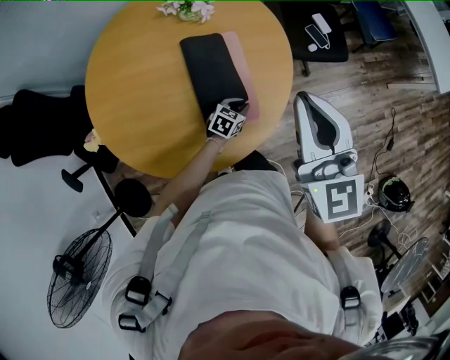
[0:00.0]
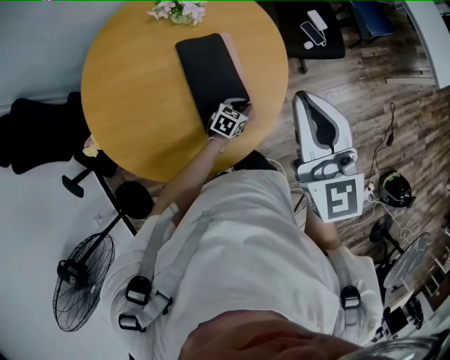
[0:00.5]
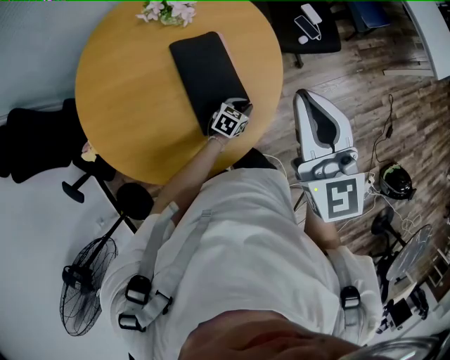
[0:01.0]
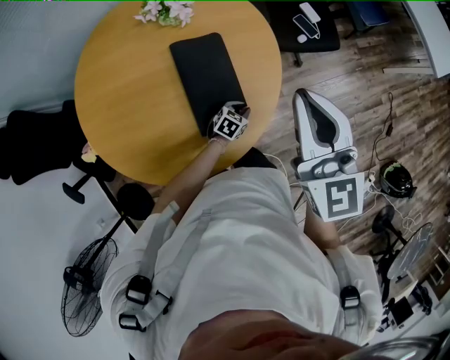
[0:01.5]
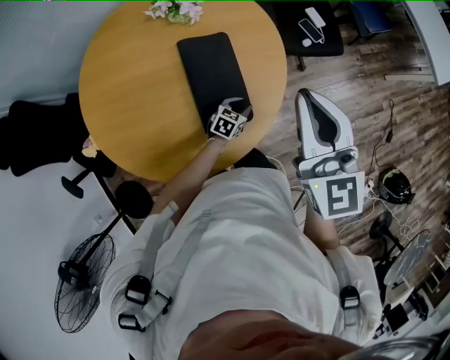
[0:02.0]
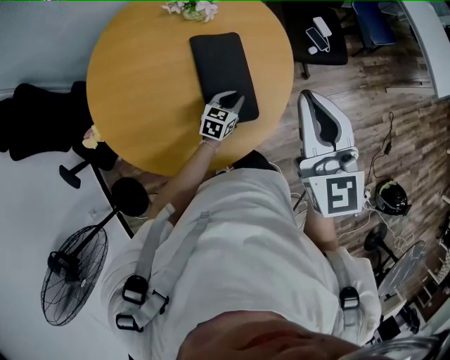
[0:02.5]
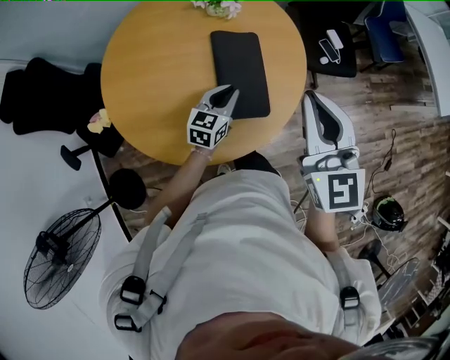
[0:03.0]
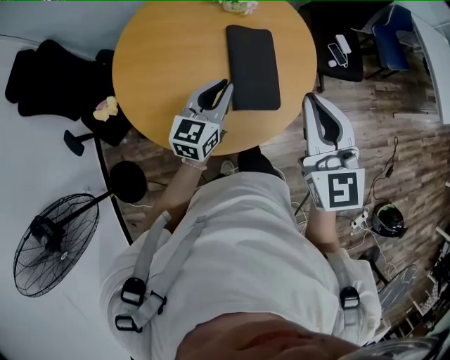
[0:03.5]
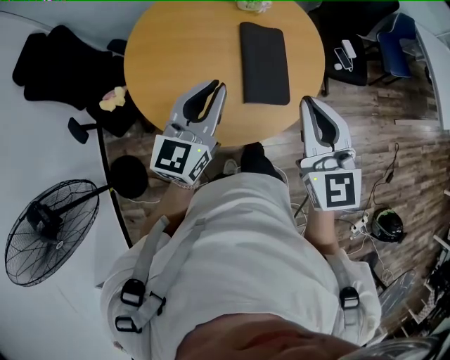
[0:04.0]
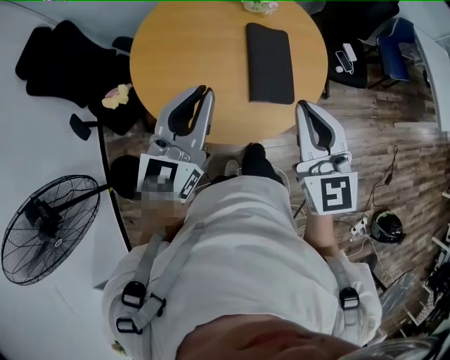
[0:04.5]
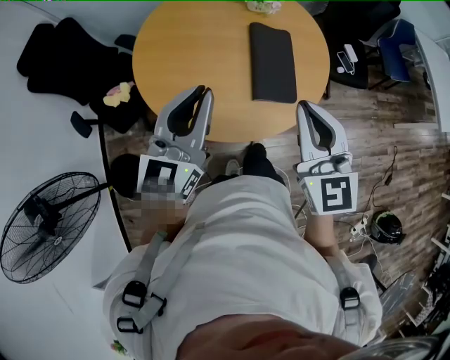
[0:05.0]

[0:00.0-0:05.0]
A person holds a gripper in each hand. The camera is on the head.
0:00.0 to 0:02.5: The left gripper goes approximately 5 cm upward.
0:02.5 to 0:05.0: The left gripper is displaced upward, to the left and backward by roughly 50 cm, and points its fingers some 40 degrees further upward. The right gripper shifts some 25 cm backward and to the left.

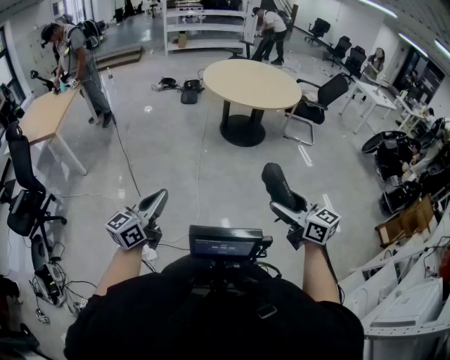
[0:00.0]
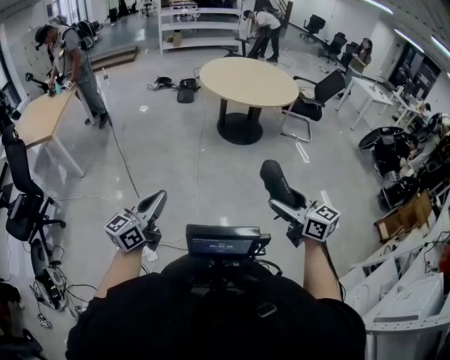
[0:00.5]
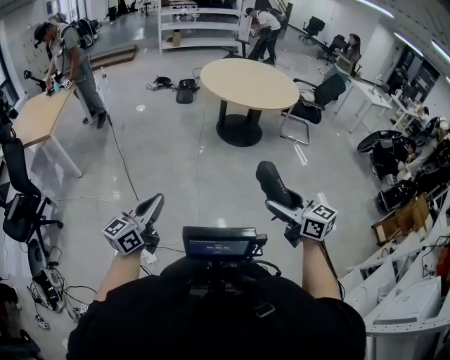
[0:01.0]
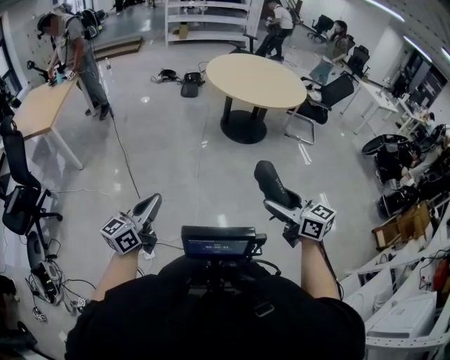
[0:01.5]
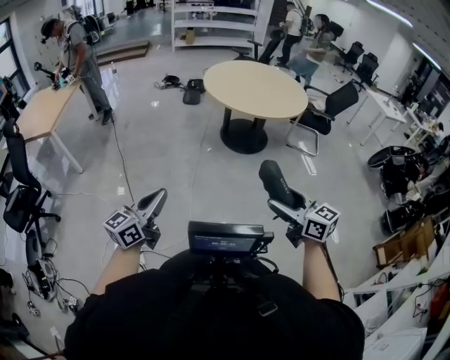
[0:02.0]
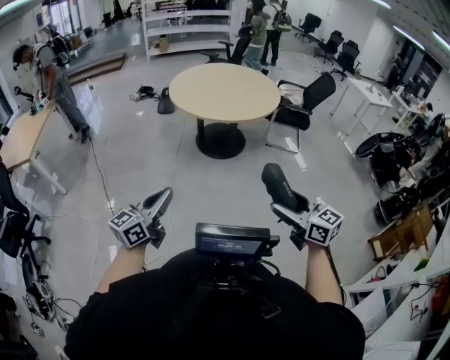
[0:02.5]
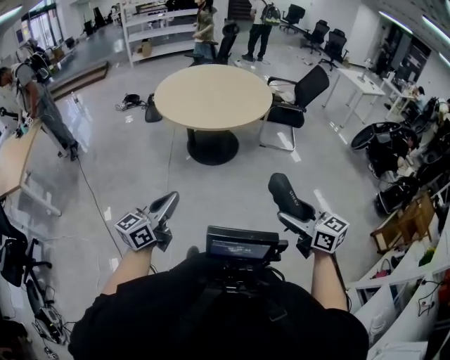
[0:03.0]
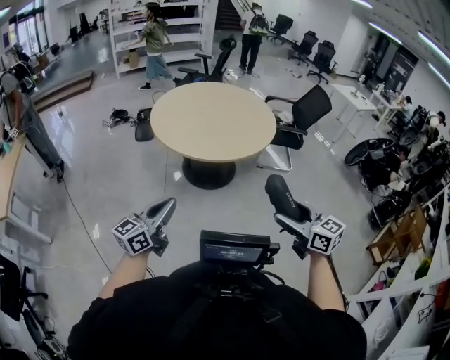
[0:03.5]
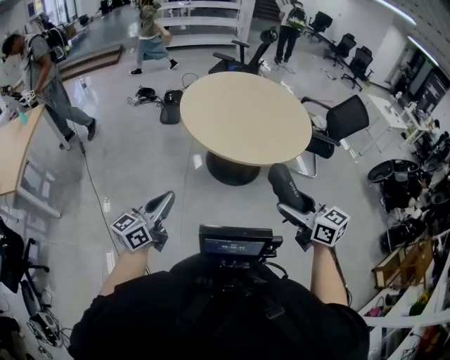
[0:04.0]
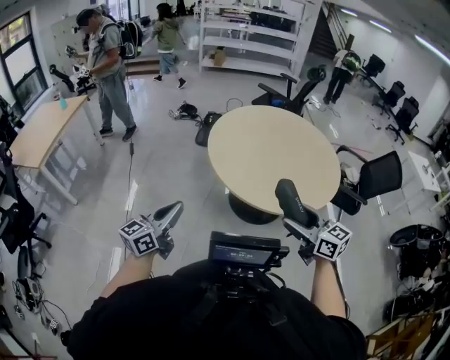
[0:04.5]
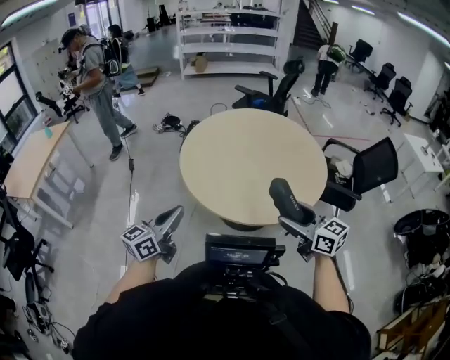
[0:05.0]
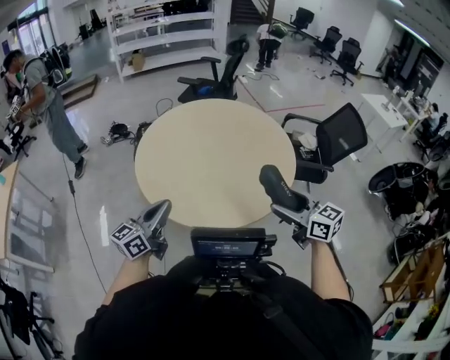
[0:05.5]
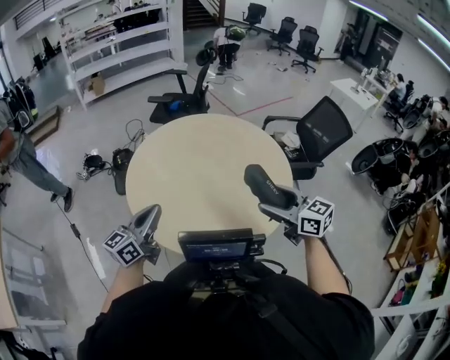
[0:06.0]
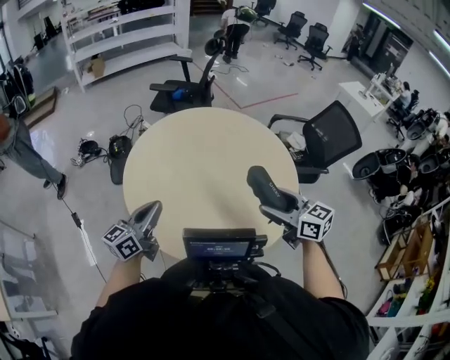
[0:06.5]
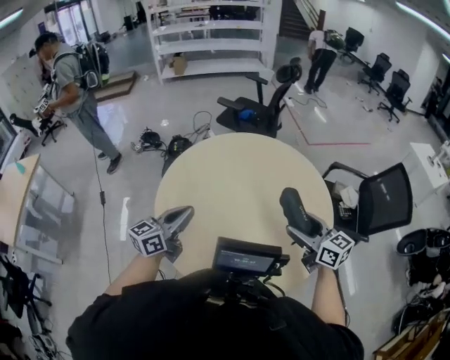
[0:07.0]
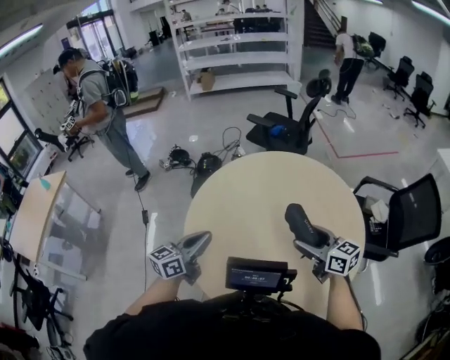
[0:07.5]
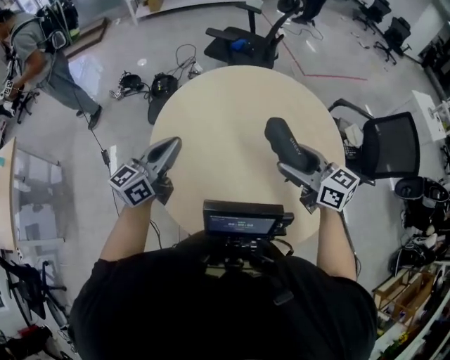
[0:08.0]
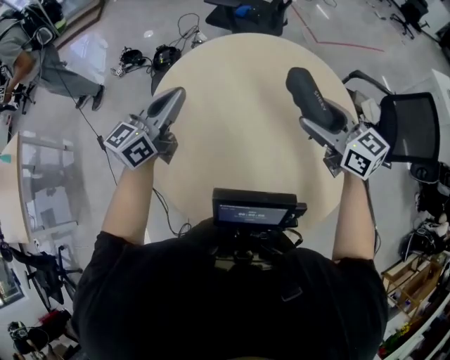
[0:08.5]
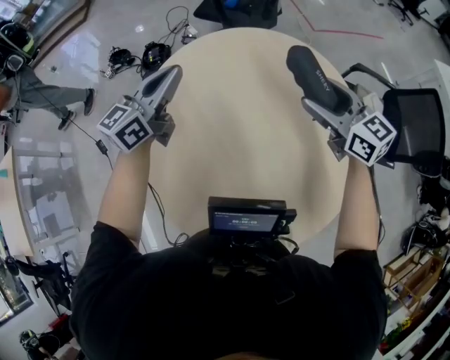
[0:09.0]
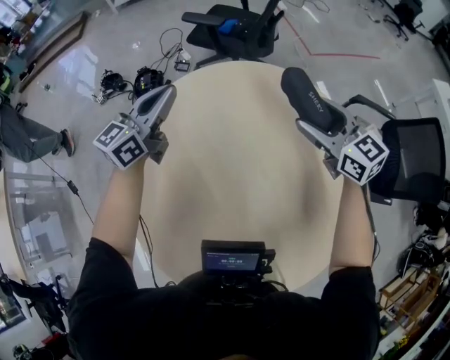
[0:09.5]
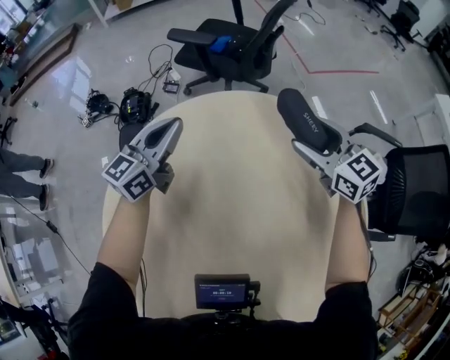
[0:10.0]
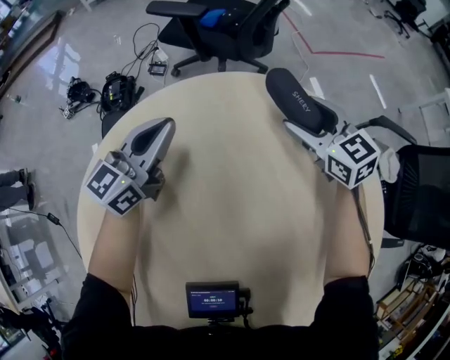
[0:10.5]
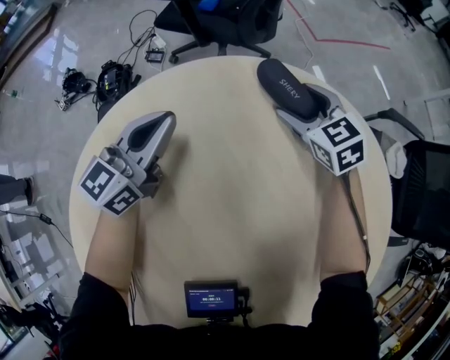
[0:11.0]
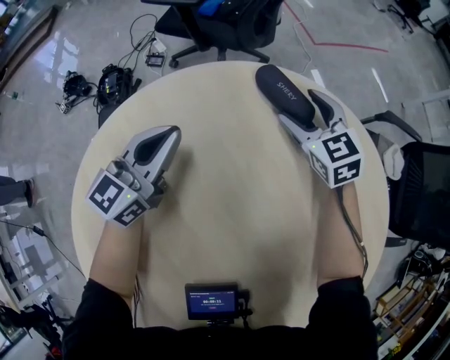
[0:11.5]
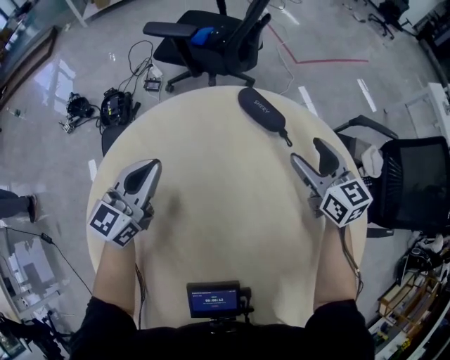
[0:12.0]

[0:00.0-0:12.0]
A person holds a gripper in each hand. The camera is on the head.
0:00.0 to 0:02.0: The two grippers go about 15 cm forward and to the right.
0:02.0 to 0:04.0: The two grippers travel together, forward, approximately 50 cm.
0:04.0 to 0:06.0: The pair of grippers is taken forward, some 50 cm.
0:06.0 to 0:08.0: The two grippers go roughly 25 cm forward.
0:08.0 to 0:10.0: The two grippers travel together, forward, about 40 cm.
0:10.0 to 0:12.0: Both grippers travel together downward, approximately 5 cm.

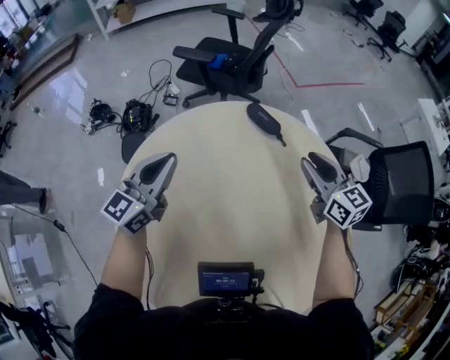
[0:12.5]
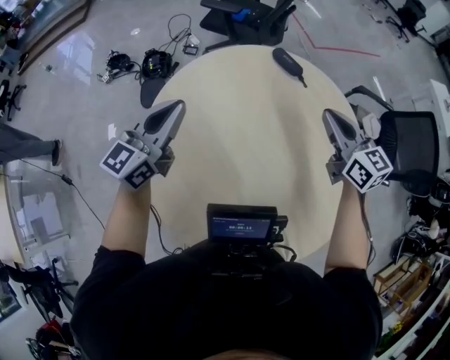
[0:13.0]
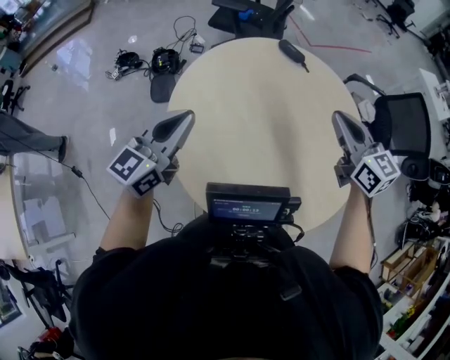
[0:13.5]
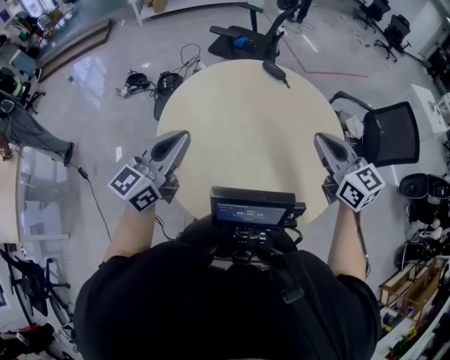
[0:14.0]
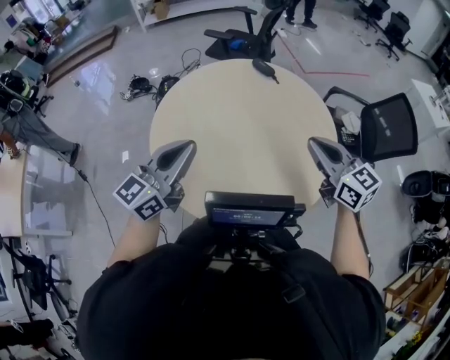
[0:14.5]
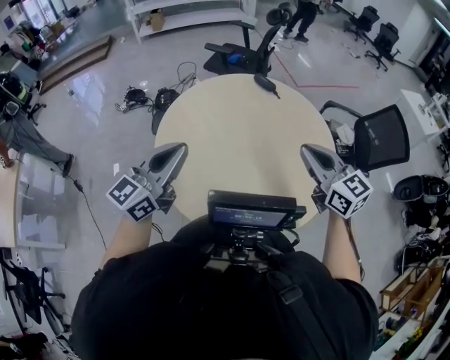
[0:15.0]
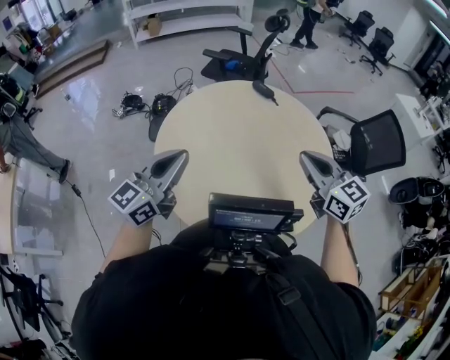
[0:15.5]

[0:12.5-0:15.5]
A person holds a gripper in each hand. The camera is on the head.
0:12.5 to 0:14.0: The right gripper is displaced backward and upward by about 40 cm, and closes its fingers. The left gripper is displaced backward by approximately 40 cm.
0:14.0 to 0:15.5: The left gripper reaches some 10 cm to the right, then returns, while the right gripper goes to the right and returns, some 5 cm each way.

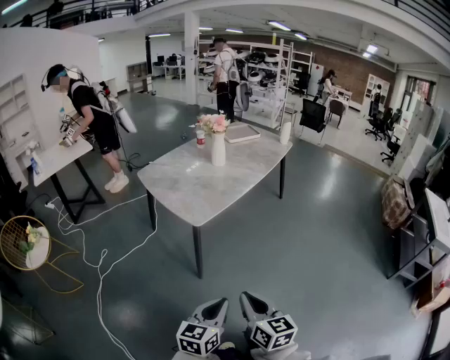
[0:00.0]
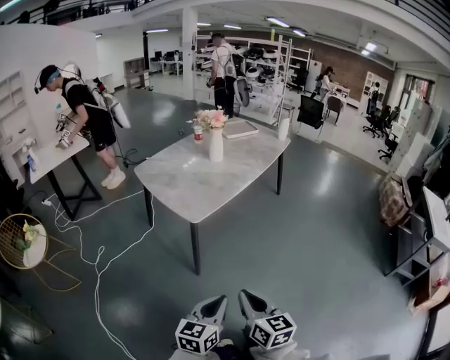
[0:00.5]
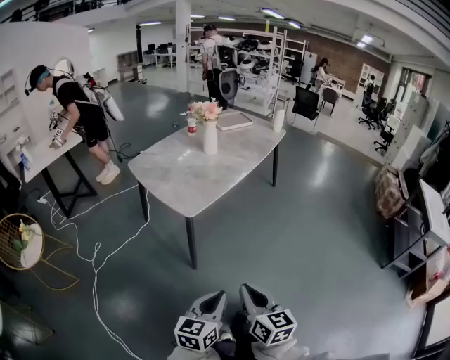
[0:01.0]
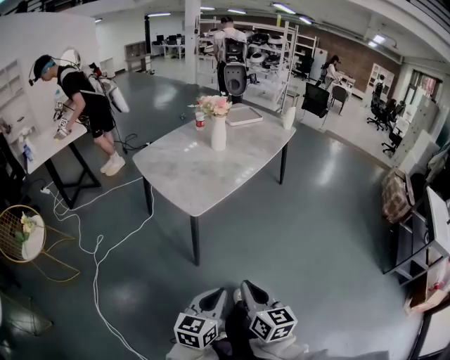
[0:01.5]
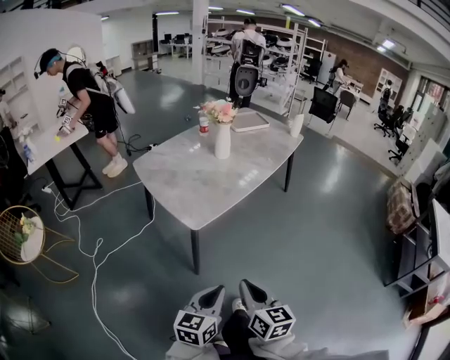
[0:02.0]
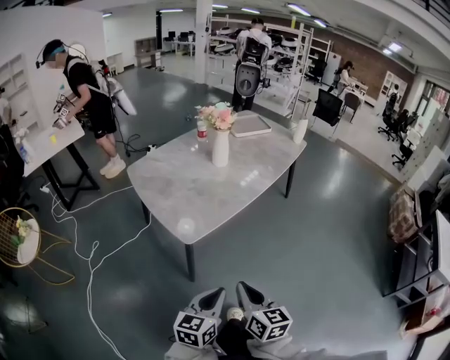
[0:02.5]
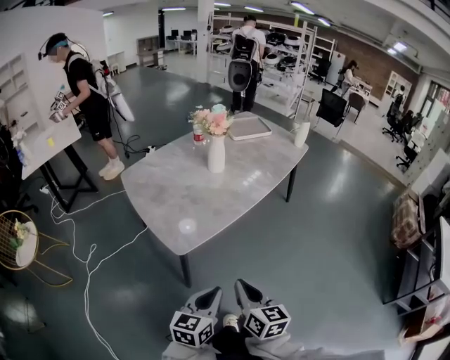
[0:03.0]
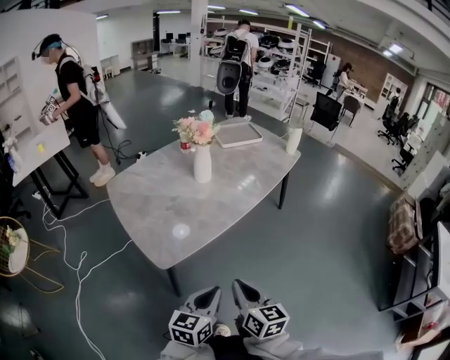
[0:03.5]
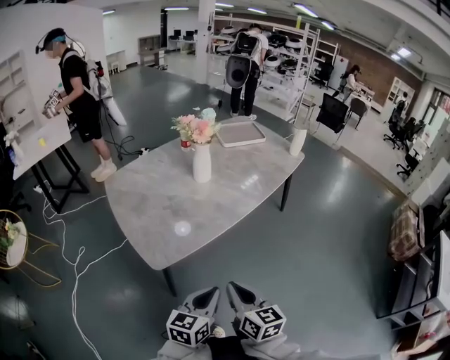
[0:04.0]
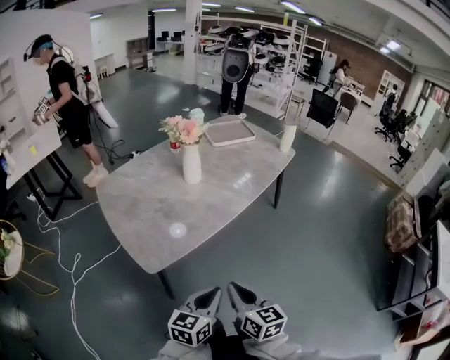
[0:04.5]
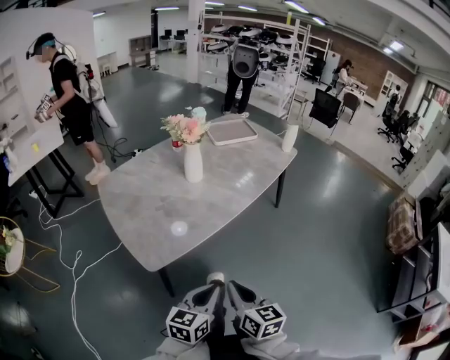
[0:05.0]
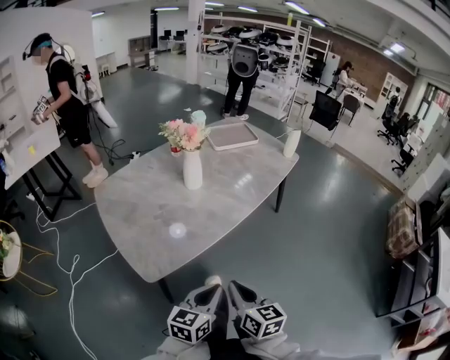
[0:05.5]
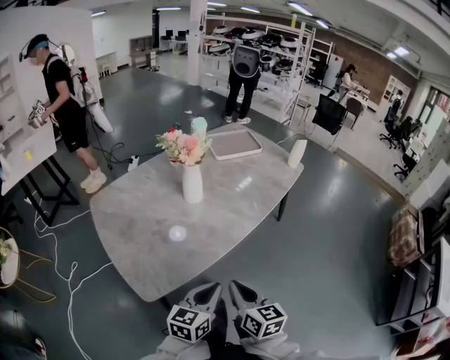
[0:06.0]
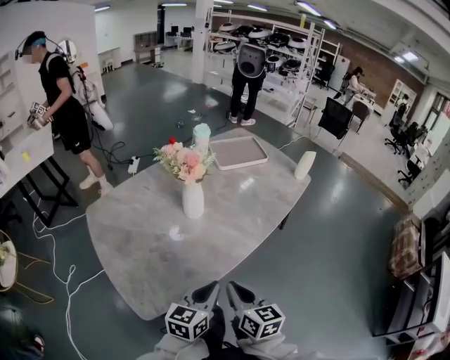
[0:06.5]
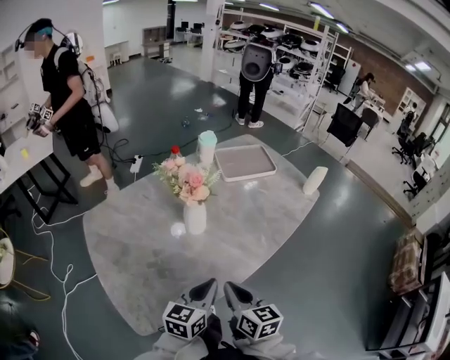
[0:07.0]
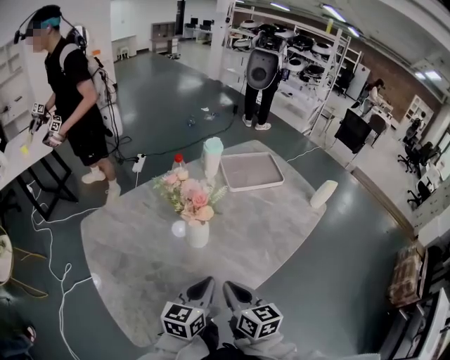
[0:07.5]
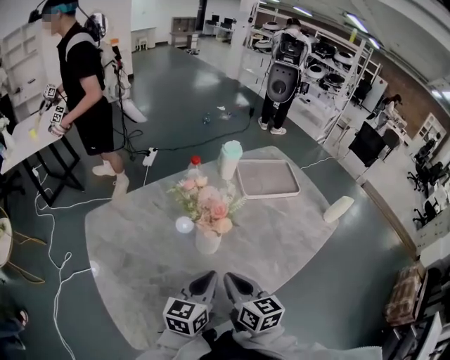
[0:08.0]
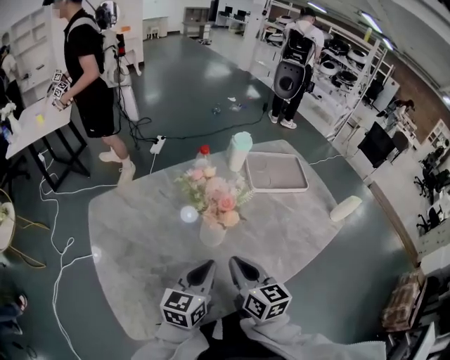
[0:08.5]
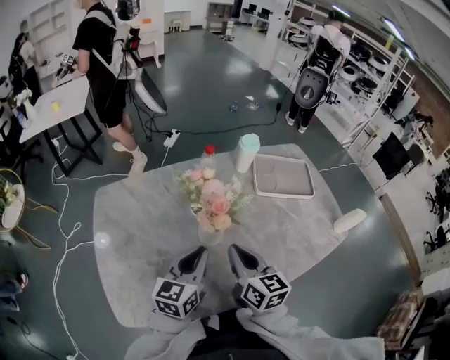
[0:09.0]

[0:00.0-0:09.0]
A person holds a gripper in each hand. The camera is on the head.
0:00.0 to 0:02.0: The two grippers go approximately 15 cm forward.
0:02.0 to 0:04.5: Both grippers move forward and to the right, approximately 30 cm.
0:04.5 to 0:07.0: The grippers both shift forward by about 35 cm.
0:07.0 to 0:09.0: The grippers both shift forward by roughly 20 cm. The left gripper changes its angle by about 20 degrees.
